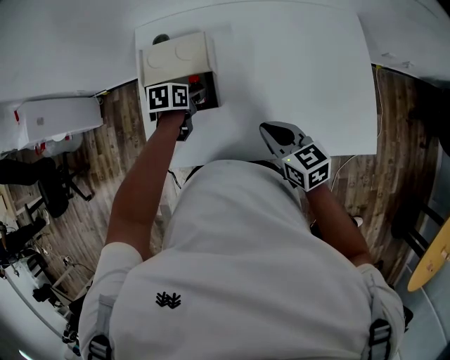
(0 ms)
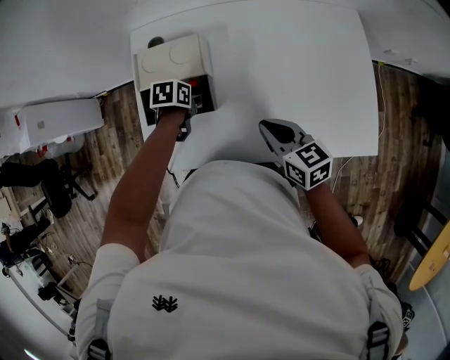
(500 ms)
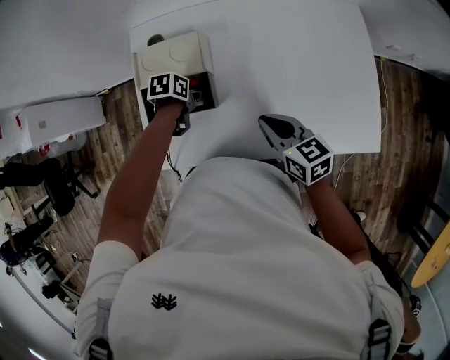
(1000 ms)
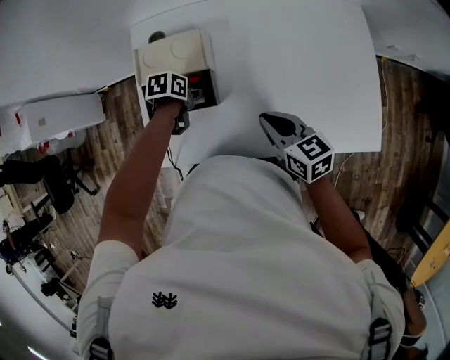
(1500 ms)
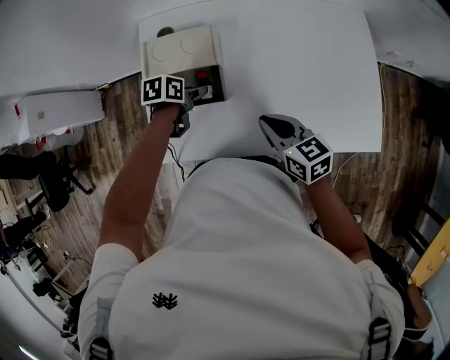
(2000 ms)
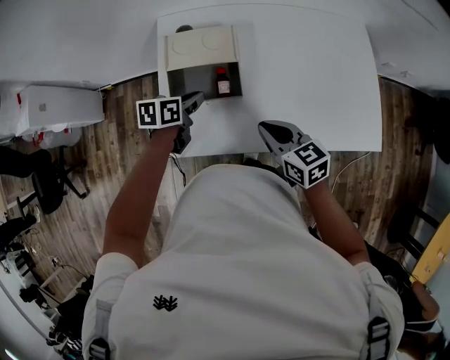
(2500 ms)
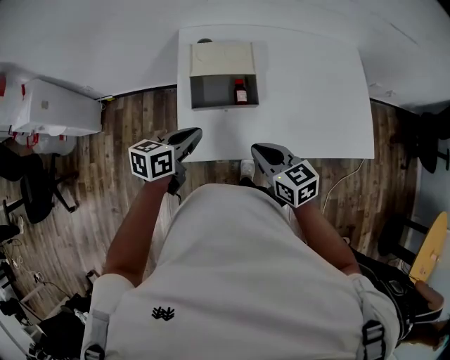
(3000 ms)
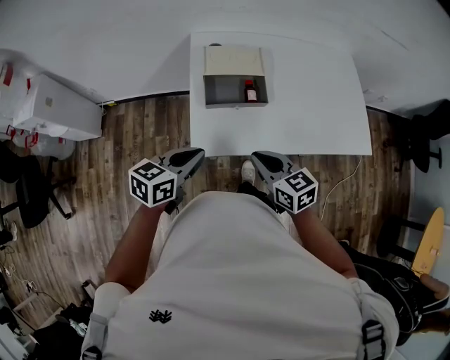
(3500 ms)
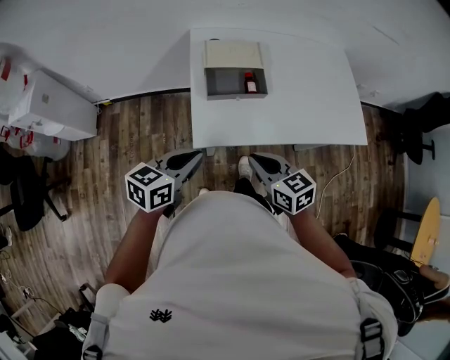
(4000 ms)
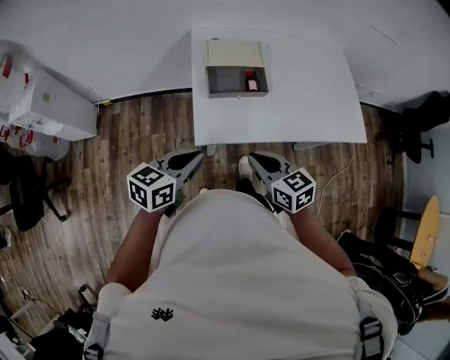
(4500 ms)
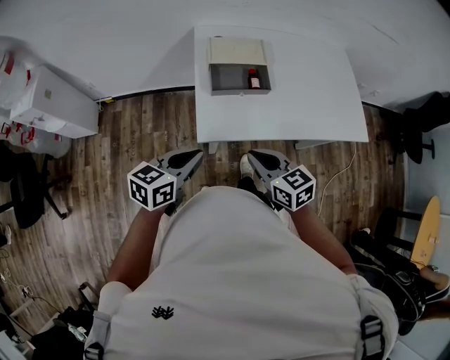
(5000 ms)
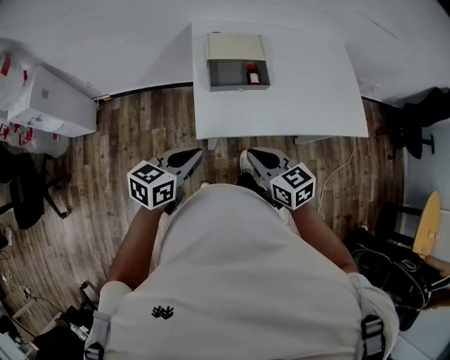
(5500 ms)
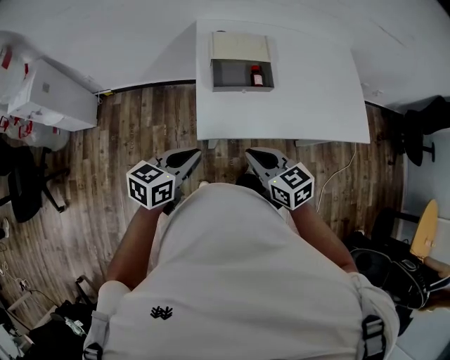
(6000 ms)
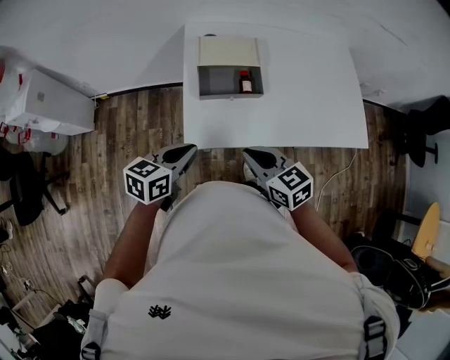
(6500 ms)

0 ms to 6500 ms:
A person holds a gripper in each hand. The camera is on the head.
0 ms to 2000 ms: There are only small adjustments of the grippers.
2000 ms to 4500 ms: The left gripper heads backward, upward and to the left, covering roughly 35 cm, tips its fingers upward by some 40 degrees, and closes up, while the right gripper shifts roughly 25 cm backward and to the left.
4500 ms to 6500 ms: The left gripper shifts by some 5 cm.

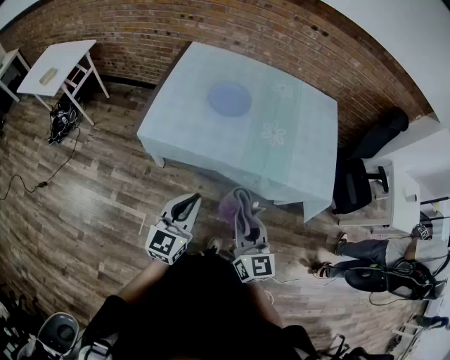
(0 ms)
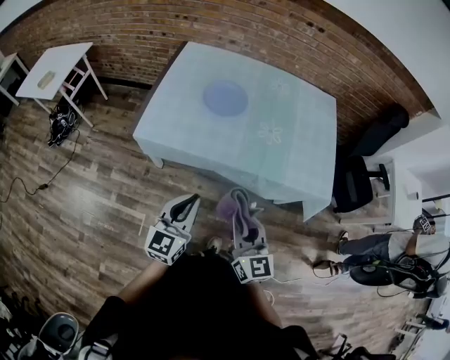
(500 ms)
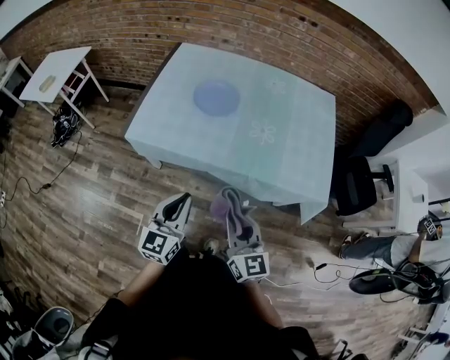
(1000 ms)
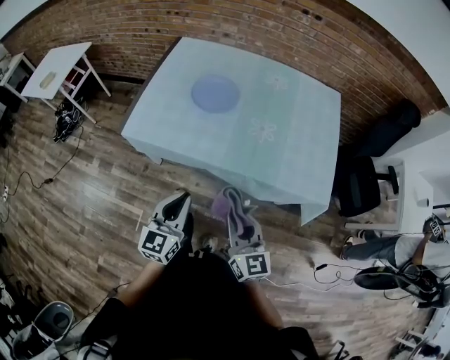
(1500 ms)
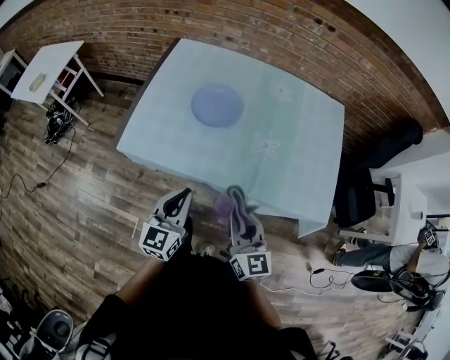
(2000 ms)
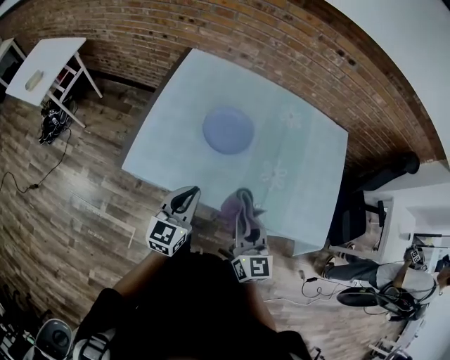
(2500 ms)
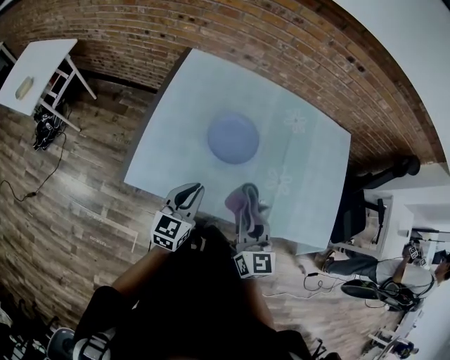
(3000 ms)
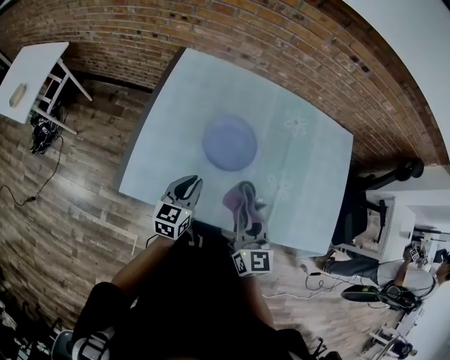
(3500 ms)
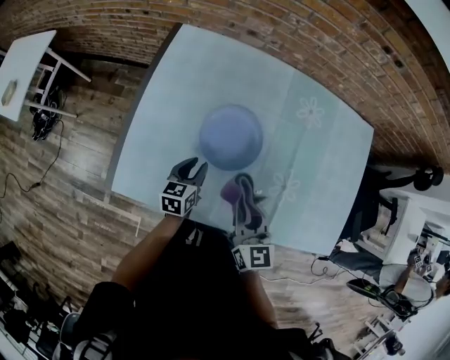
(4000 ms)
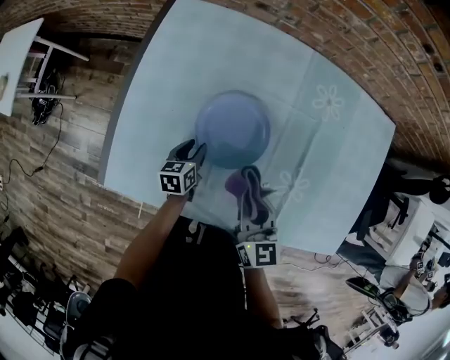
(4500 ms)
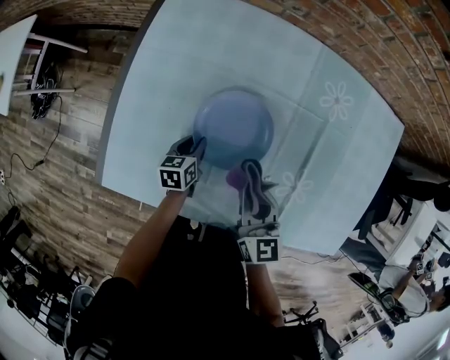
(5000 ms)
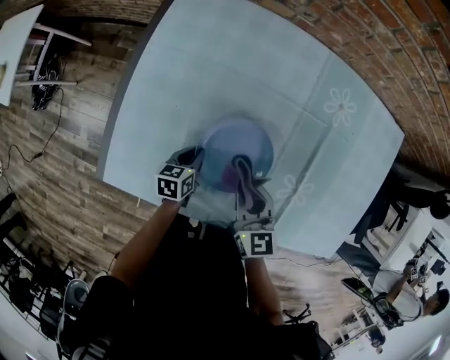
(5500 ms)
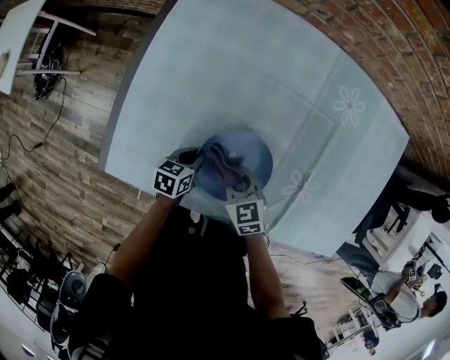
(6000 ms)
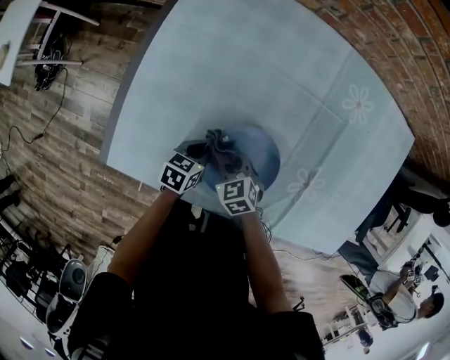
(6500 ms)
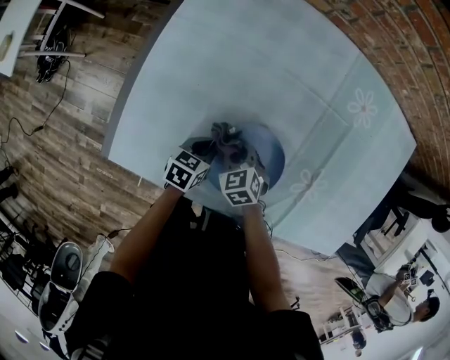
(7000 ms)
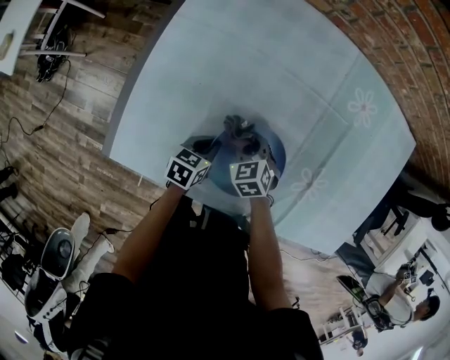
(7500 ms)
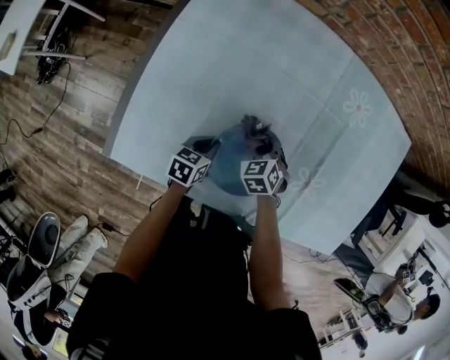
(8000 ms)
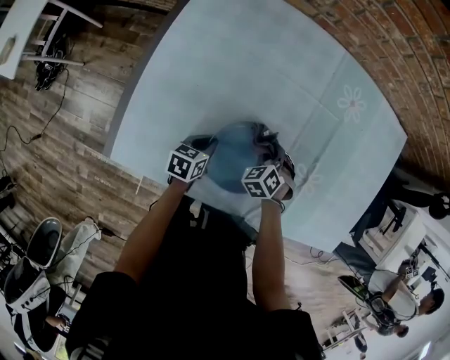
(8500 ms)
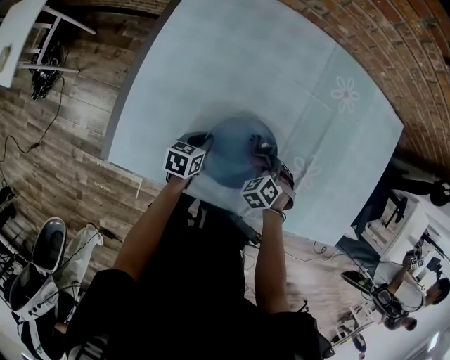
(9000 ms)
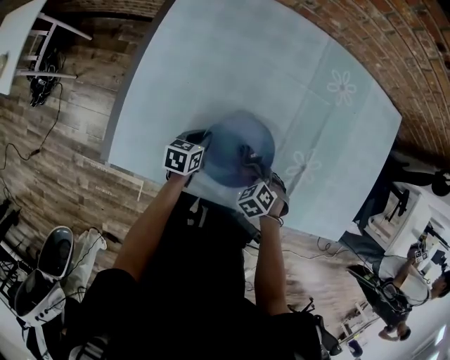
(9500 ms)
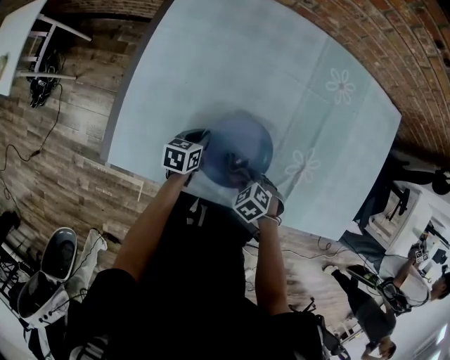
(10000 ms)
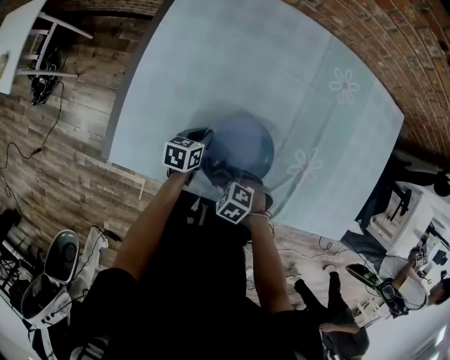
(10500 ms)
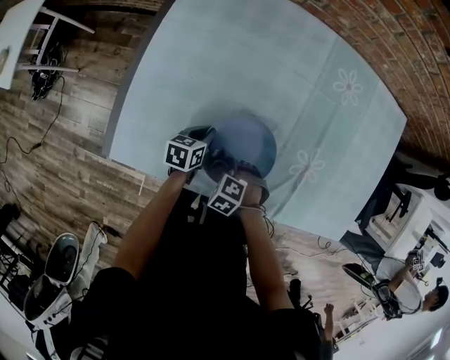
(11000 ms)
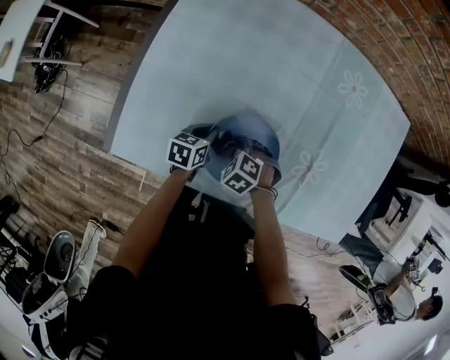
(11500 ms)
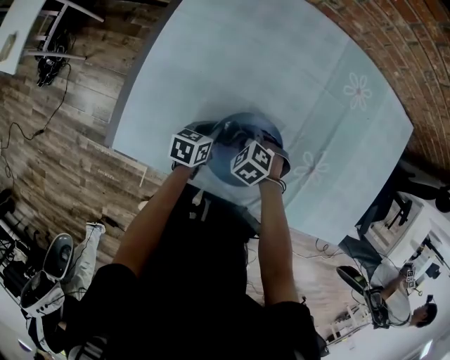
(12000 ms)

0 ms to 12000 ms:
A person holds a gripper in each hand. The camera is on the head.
0 ms to 2000 ms: The right gripper moves forward and to the right, about 15 cm, while the left gripper travels forward by approximately 15 cm.
2000 ms to 4000 ms: The right gripper shifts approximately 30 cm forward, while the left gripper travels forward and downward by some 40 cm, and turns by some 30 degrees.
4000 ms to 6000 ms: The left gripper is displaced downward by approximately 15 cm, and rotates about 20 degrees. Meanwhile the right gripper travels downward by roughly 20 cm, and changes its angle by approximately 40 degrees.
6000 ms to 8000 ms: The right gripper is displaced forward and downward by some 10 cm, and changes its angle by some 30 degrees.
8000 ms to 10000 ms: The right gripper ends up about 20 cm from where it was, and turns by some 30 degrees.
10000 ms to 12000 ms: The right gripper moves some 15 cm.

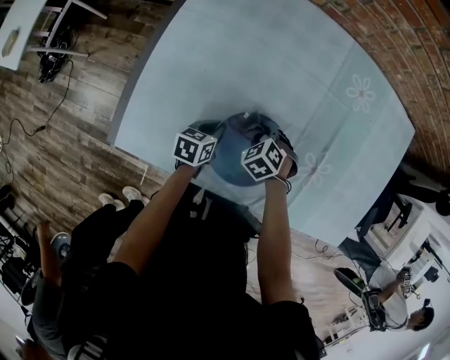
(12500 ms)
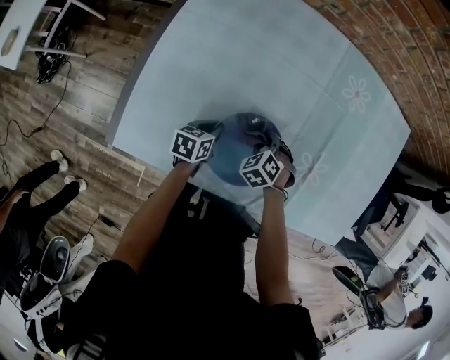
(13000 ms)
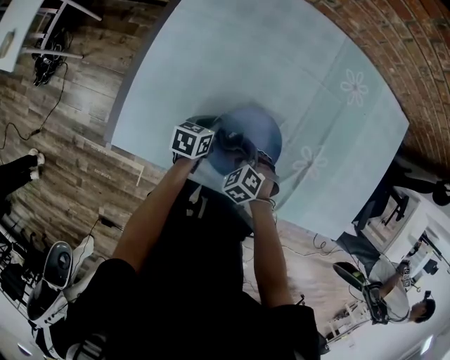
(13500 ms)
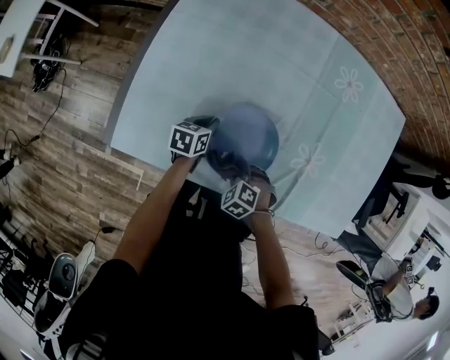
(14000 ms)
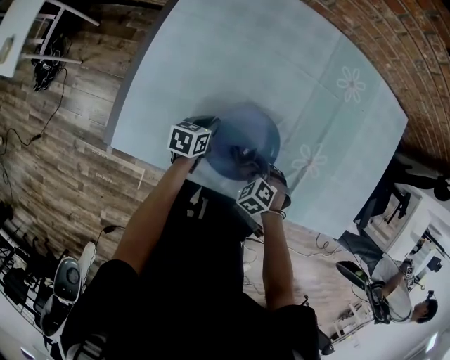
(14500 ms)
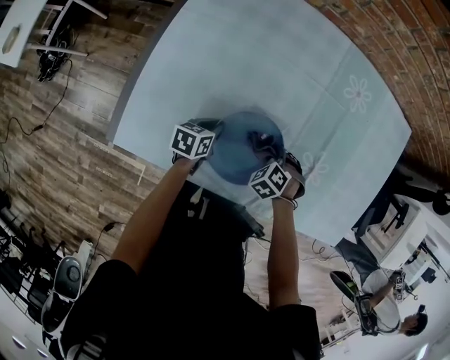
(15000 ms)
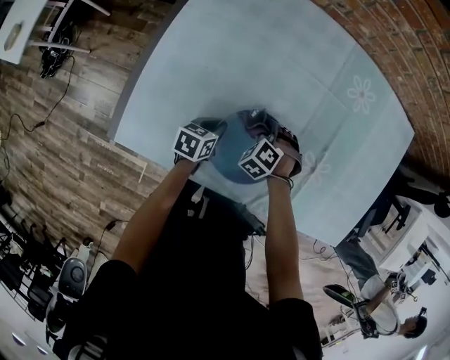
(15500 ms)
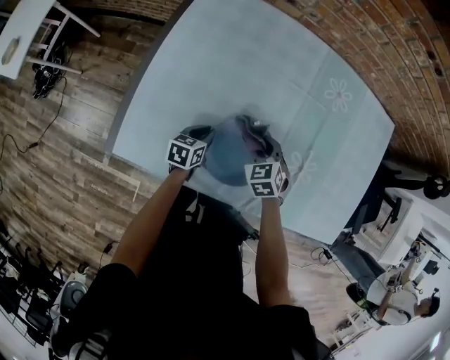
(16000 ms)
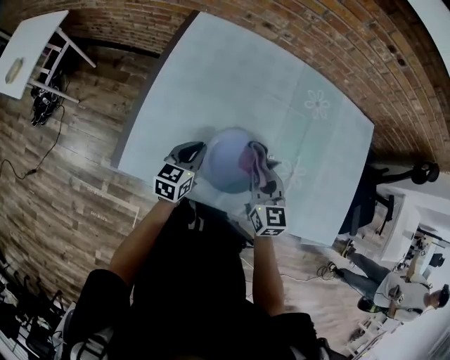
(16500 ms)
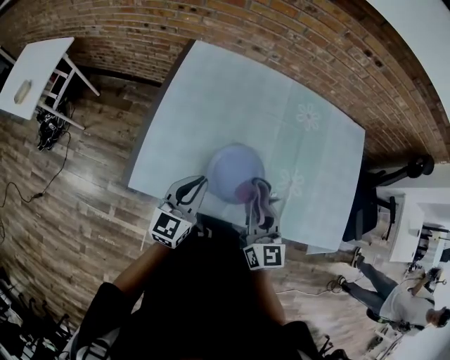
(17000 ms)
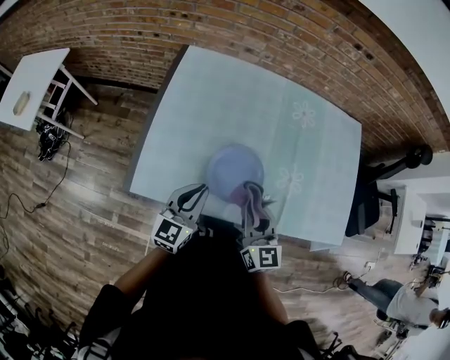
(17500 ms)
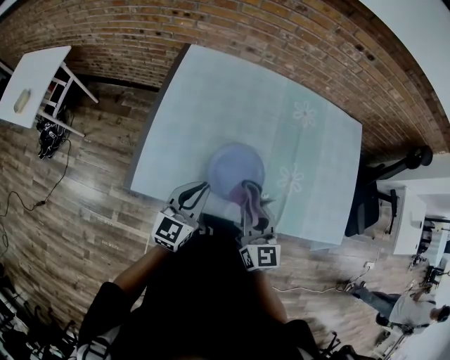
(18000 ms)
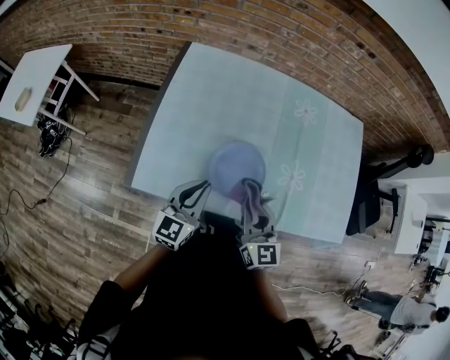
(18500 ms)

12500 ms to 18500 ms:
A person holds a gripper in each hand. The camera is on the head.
12500 ms to 14500 ms: The right gripper moves about 15 cm.
14500 ms to 16500 ms: The two grippers go some 20 cm upward. The right gripper points its fingers roughly 50 degrees further upward. The left gripper changes its angle by some 30 degrees.
16500 ms to 18500 ms: The left gripper shifts some 15 cm upward and backward, and rotates approximately 20 degrees. Meanwhile the right gripper heads backward and upward, covering approximately 15 cm.

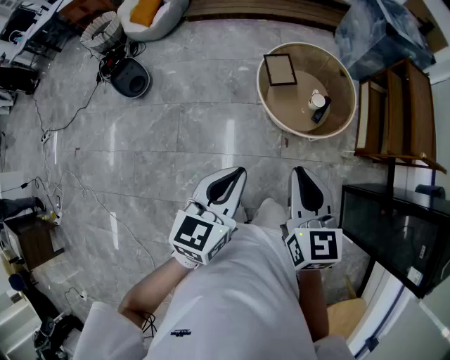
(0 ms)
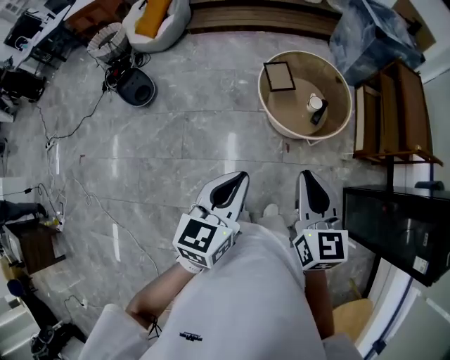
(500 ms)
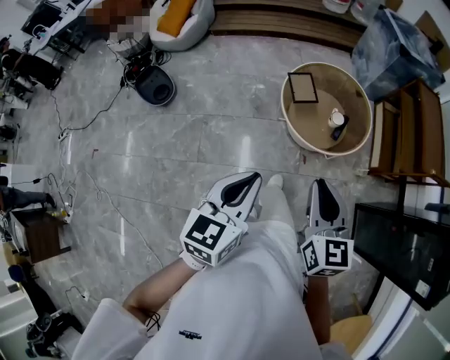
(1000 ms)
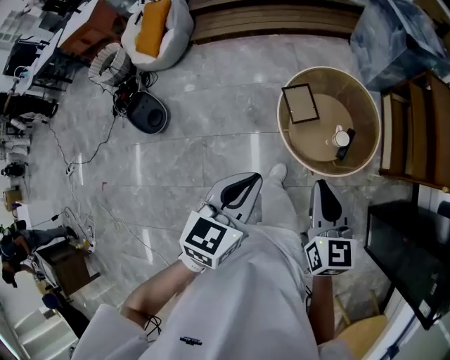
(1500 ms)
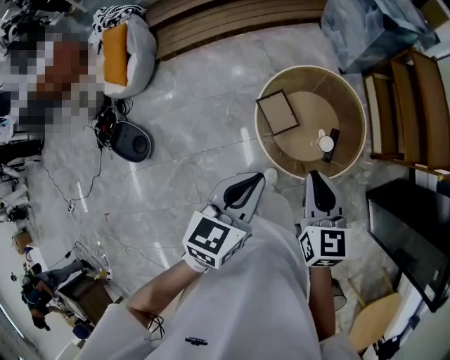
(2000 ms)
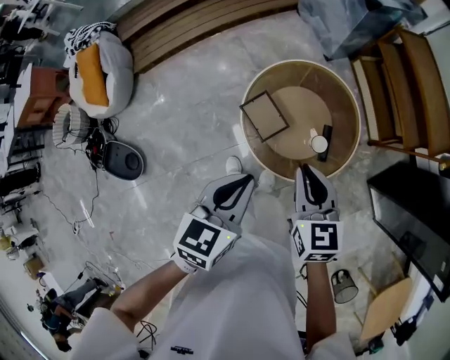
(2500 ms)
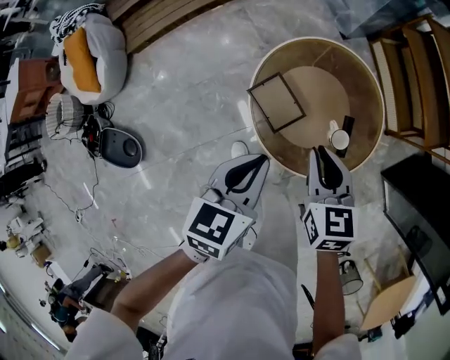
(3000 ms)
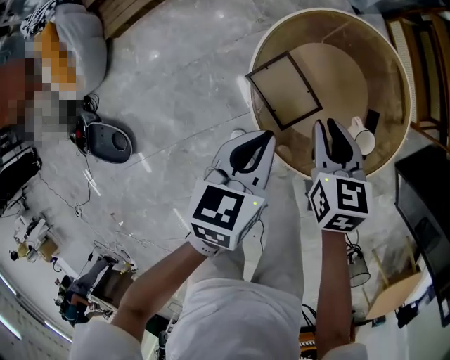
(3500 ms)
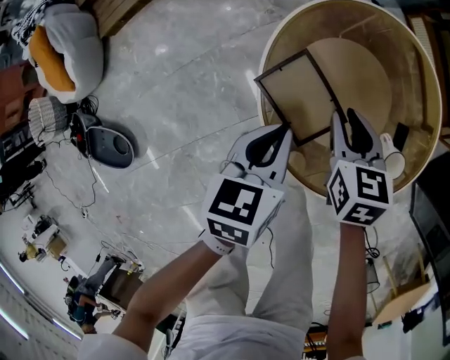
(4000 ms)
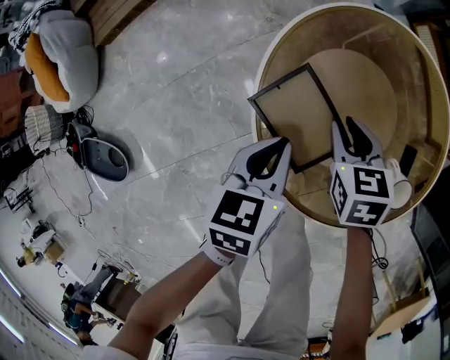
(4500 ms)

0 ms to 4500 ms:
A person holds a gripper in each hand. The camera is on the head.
0 ms to 2000 ms: The grippers both shift forward by approximately 35 cm. The left gripper changes its angle by roughly 20 degrees.
2000 ms to 4500 ms: The two grippers go roughly 60 cm downward and forward. The right gripper rotates approximately 30 degrees.
